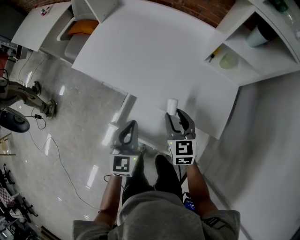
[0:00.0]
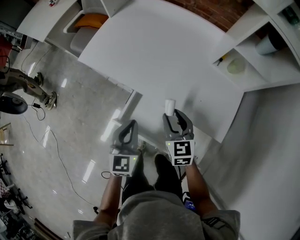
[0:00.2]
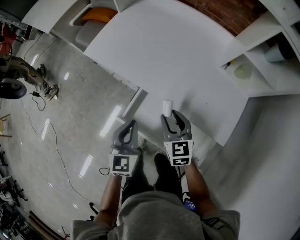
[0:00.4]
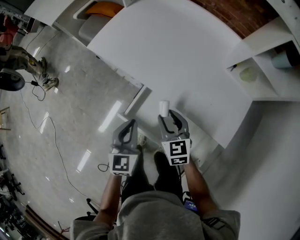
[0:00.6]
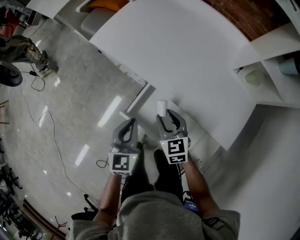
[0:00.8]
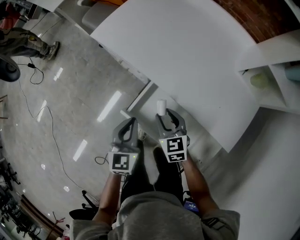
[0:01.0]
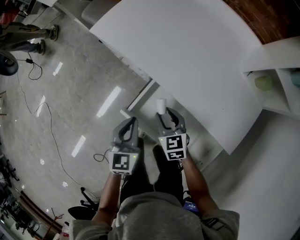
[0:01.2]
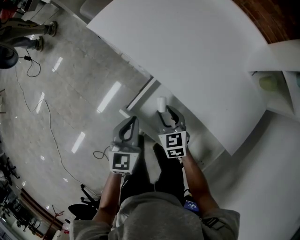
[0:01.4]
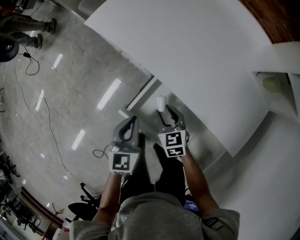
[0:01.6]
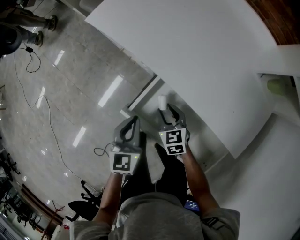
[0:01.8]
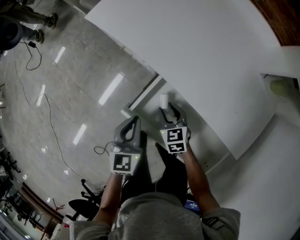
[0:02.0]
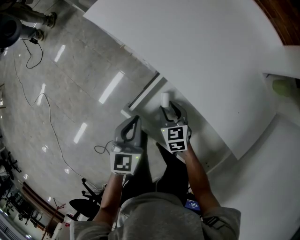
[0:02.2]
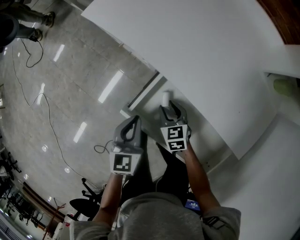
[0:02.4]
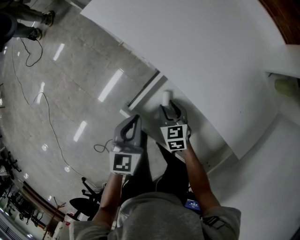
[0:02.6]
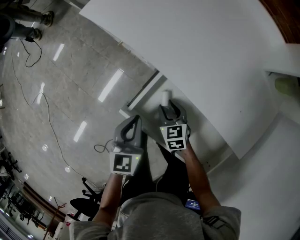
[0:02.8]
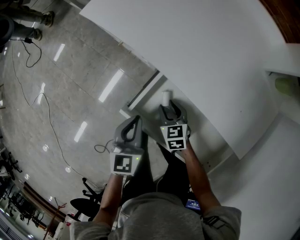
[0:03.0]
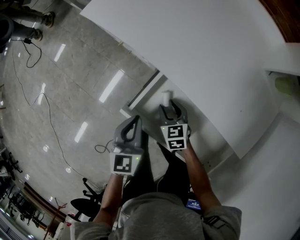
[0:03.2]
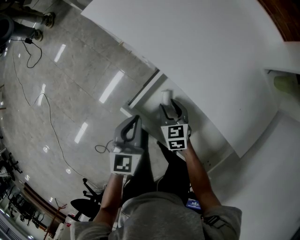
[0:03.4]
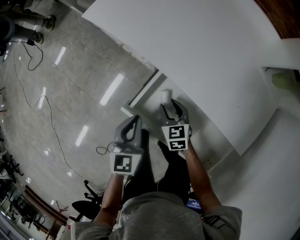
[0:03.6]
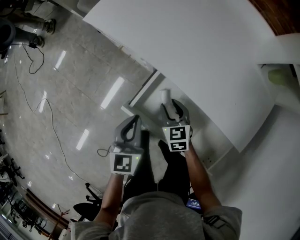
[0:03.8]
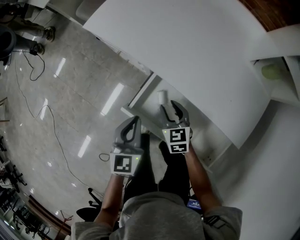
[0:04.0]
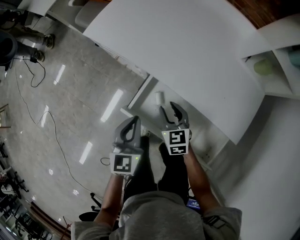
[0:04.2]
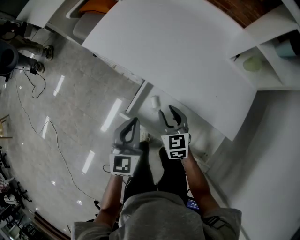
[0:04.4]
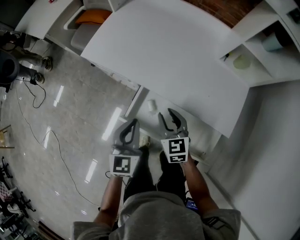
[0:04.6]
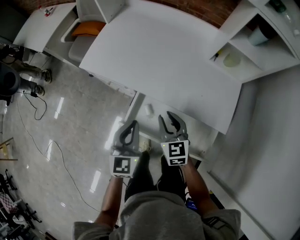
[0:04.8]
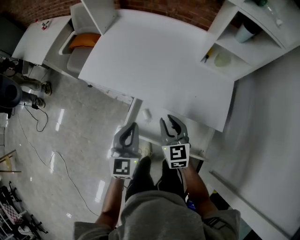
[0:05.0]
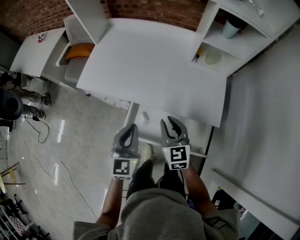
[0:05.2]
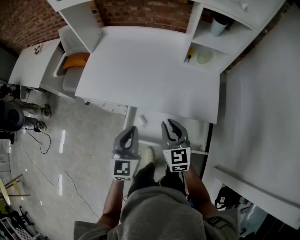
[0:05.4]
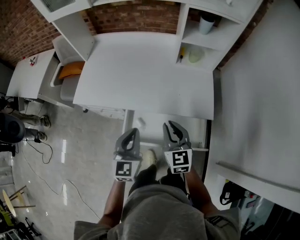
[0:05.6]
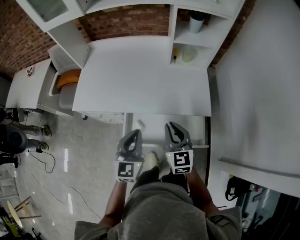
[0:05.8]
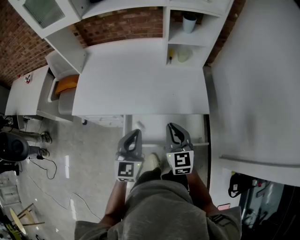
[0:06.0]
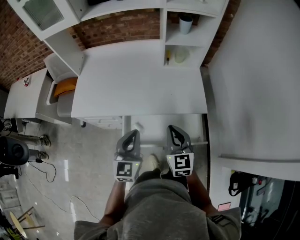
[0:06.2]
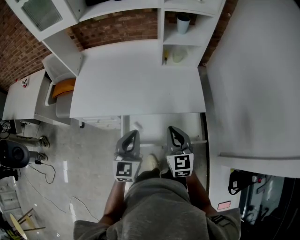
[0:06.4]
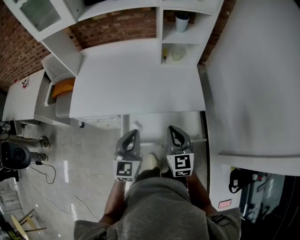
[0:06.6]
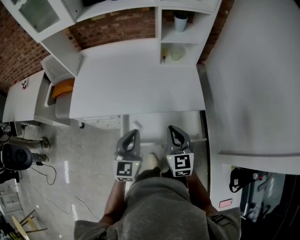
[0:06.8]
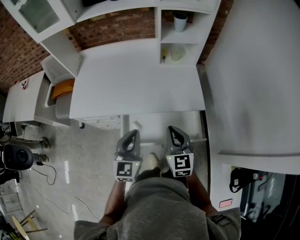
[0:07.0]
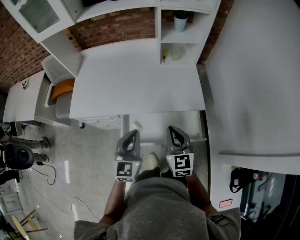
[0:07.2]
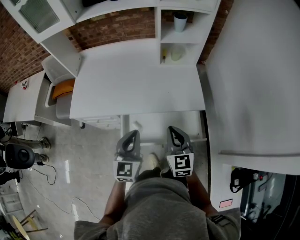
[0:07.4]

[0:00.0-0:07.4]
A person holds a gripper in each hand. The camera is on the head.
0:00.0 to 0:01.4: The grippers both shift downward and to the left by some 20 cm. The right gripper rotates approximately 30 degrees.
0:01.4 to 0:03.0: The left gripper moves downward, roughly 5 cm. The right gripper heads downward, covering some 10 cm.
0:03.0 to 0:04.4: The two grippers go approximately 15 cm upward.
0:04.4 to 0:06.0: Both grippers travel together upward, approximately 20 cm. The left gripper changes its angle by approximately 30 degrees, while the right gripper rotates approximately 40 degrees, and closes up.
0:06.0 to 0:07.4: The grippers stay close to where they were, moving slightly.

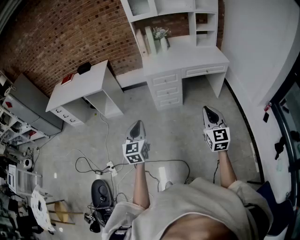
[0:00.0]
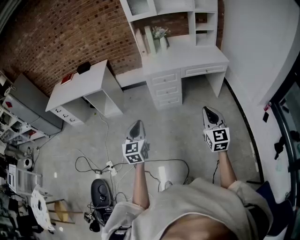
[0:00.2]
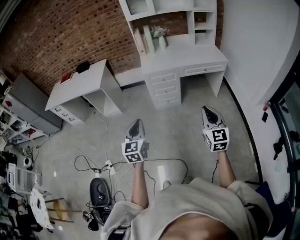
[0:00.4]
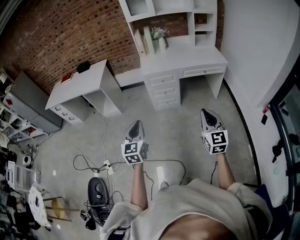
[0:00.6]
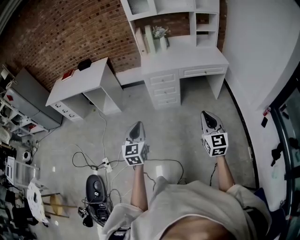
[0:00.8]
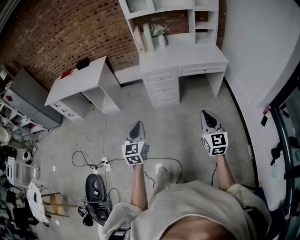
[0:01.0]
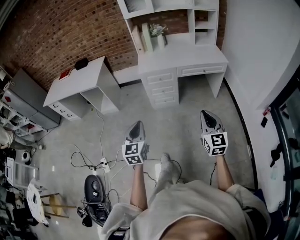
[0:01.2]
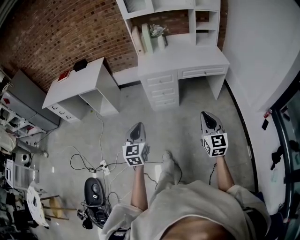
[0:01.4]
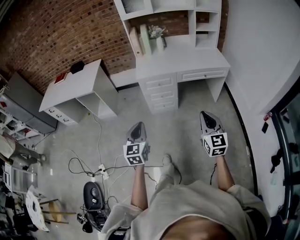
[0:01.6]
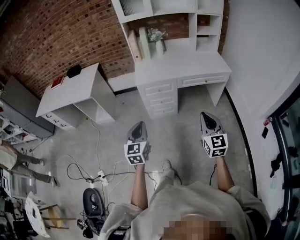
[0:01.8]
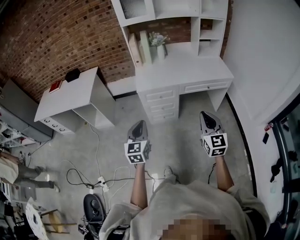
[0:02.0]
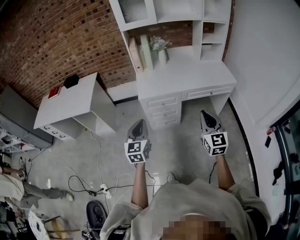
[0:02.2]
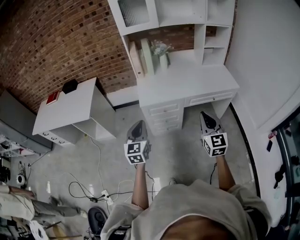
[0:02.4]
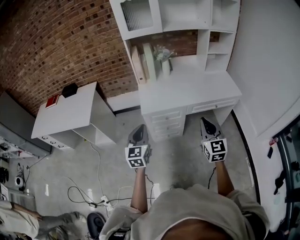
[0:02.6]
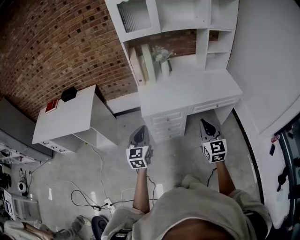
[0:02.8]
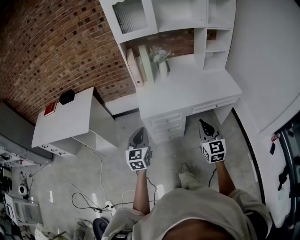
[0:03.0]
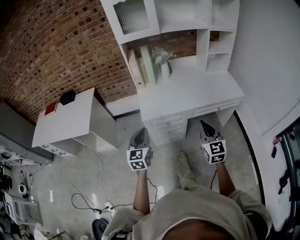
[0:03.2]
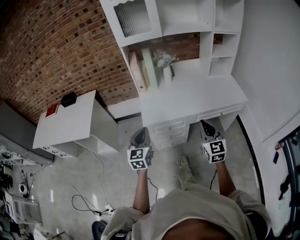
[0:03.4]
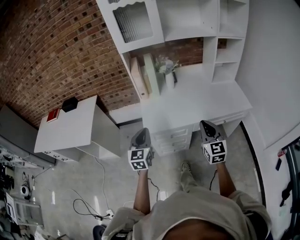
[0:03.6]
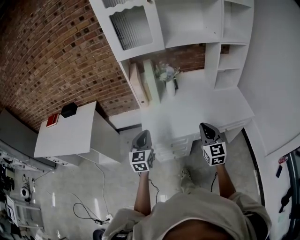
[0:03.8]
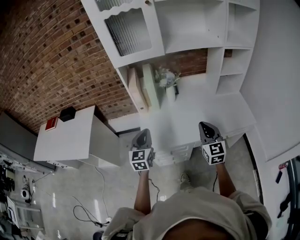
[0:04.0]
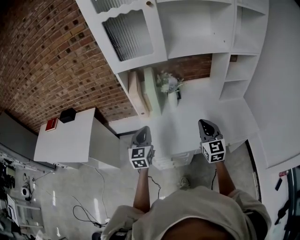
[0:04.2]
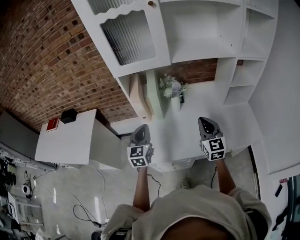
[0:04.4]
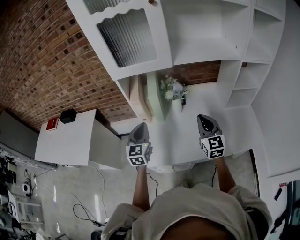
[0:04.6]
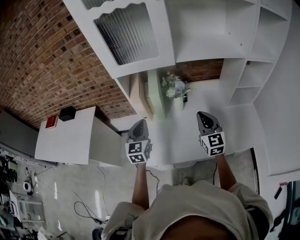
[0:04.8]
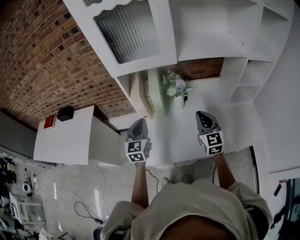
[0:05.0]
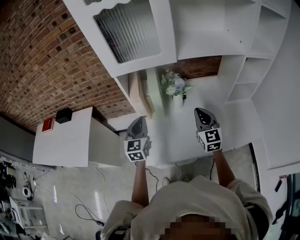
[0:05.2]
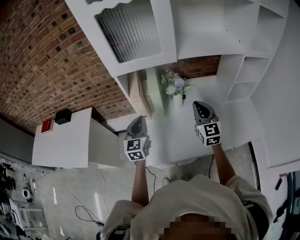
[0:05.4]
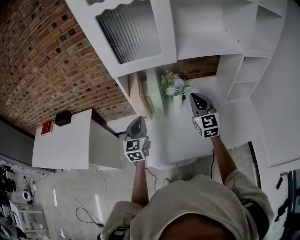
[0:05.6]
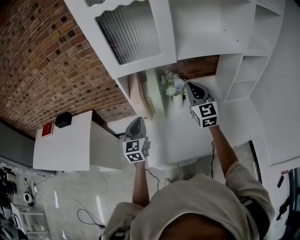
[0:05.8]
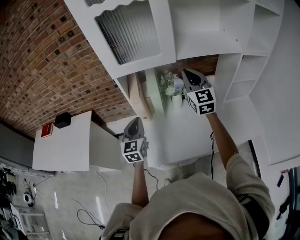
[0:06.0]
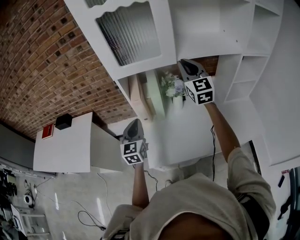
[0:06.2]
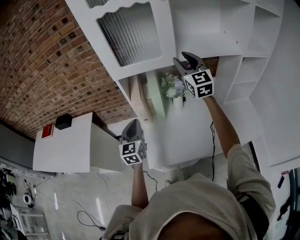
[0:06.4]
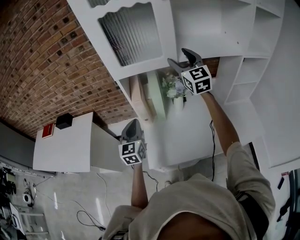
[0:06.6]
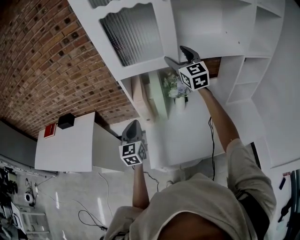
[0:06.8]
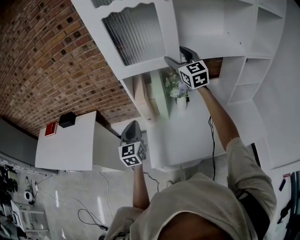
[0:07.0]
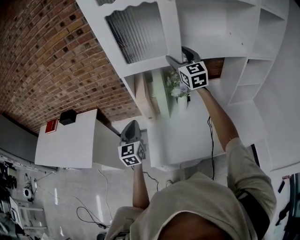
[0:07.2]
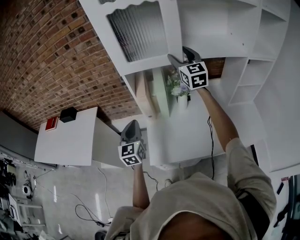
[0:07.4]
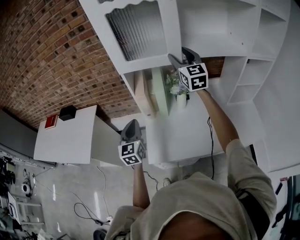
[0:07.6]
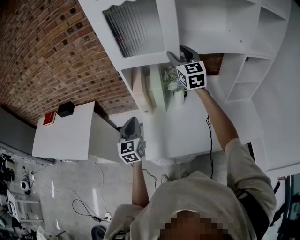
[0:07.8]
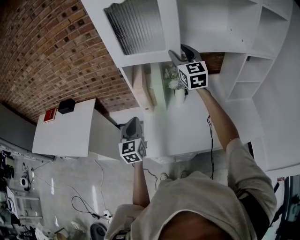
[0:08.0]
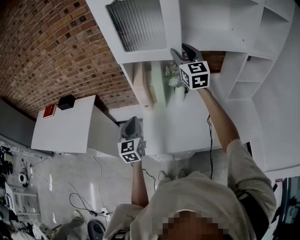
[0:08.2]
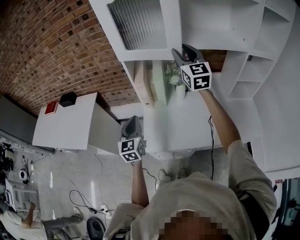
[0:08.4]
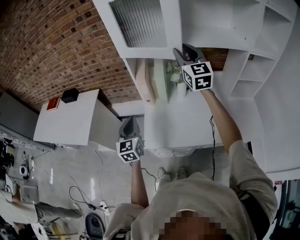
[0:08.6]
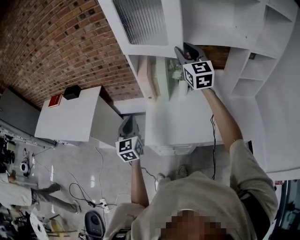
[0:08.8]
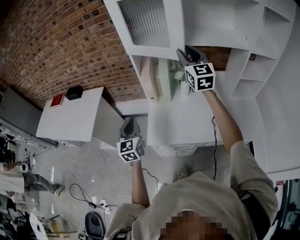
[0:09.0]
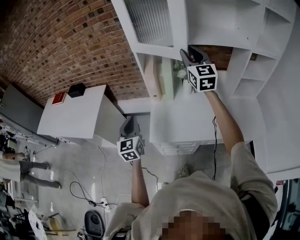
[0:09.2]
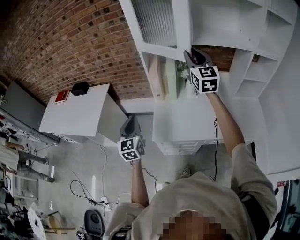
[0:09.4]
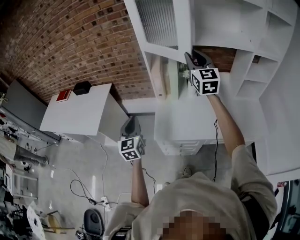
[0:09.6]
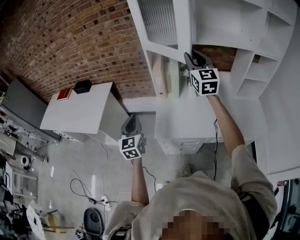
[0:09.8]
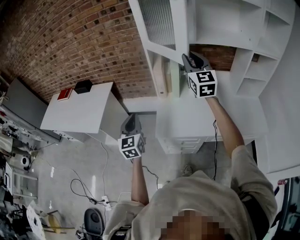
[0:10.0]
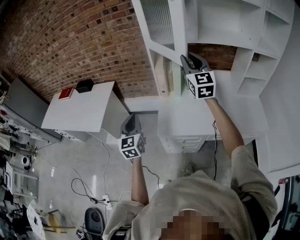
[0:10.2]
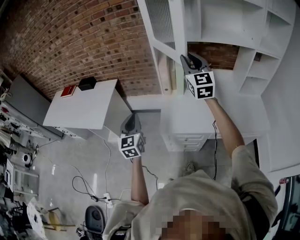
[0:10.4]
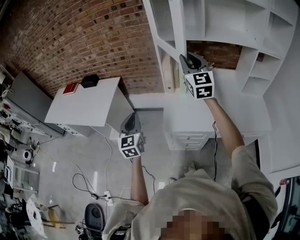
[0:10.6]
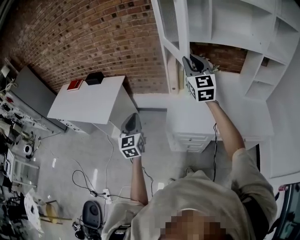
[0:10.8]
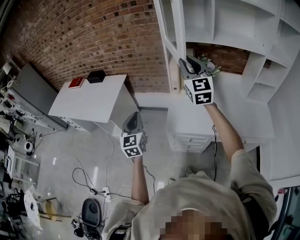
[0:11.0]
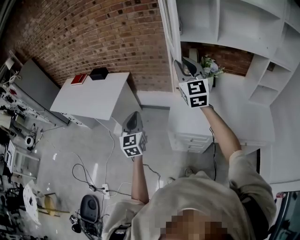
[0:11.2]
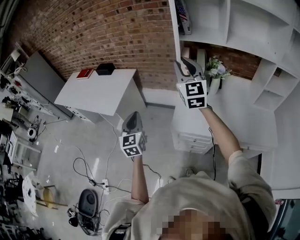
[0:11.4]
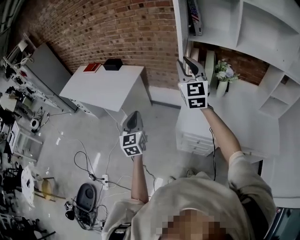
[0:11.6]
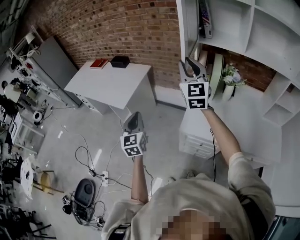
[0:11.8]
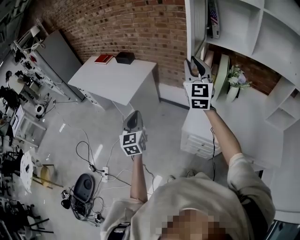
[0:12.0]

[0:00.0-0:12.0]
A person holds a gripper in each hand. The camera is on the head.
0:00.0 to 0:01.6: The grippers both shift forward and to the right by approximately 15 cm.
0:01.6 to 0:03.0: Both grippers travel together forward, approximately 35 cm.
0:03.0 to 0:04.4: The two grippers go roughly 40 cm forward.
0:04.4 to 0:06.0: The left gripper is displaced forward and to the left by roughly 10 cm. The right gripper is displaced forward and upward by about 20 cm.
0:06.0 to 0:07.6: The right gripper is displaced upward and forward by roughly 10 cm, and opens its fingers.
0:07.6 to 0:09.0: The grippers both shift backward by about 10 cm. The right gripper closes.
0:09.0 to 0:10.4: The grippers both shift to the left and backward by approximately 15 cm.
0:10.4 to 0:12.0: The grippers both shift to the left by approximately 15 cm.

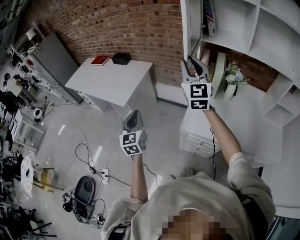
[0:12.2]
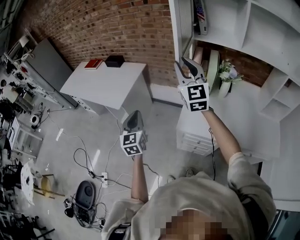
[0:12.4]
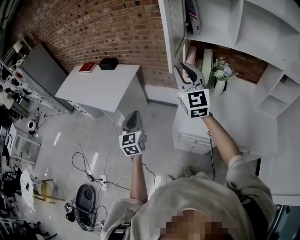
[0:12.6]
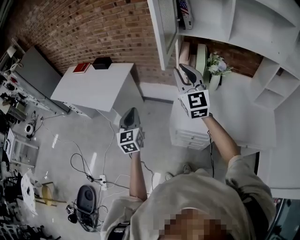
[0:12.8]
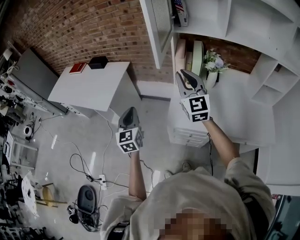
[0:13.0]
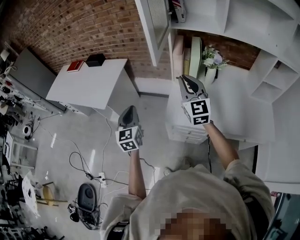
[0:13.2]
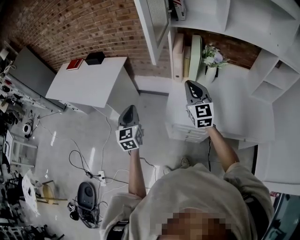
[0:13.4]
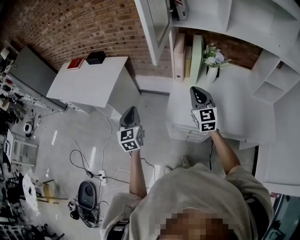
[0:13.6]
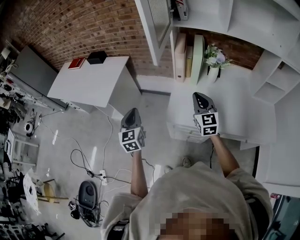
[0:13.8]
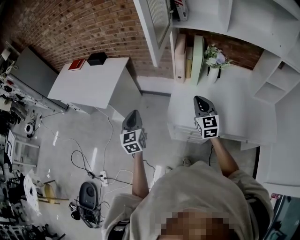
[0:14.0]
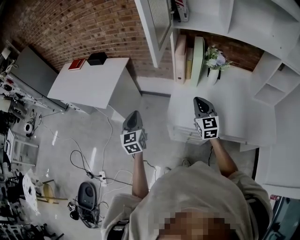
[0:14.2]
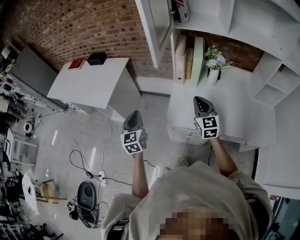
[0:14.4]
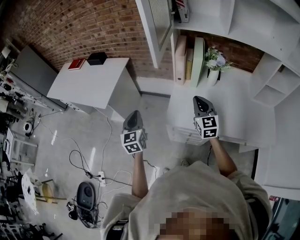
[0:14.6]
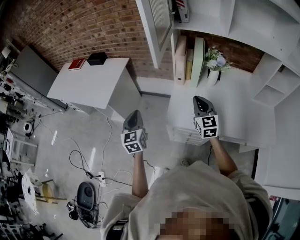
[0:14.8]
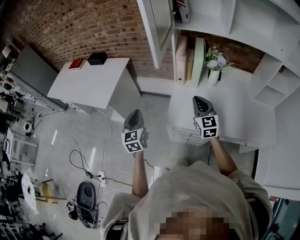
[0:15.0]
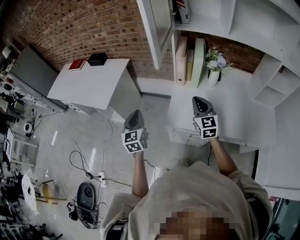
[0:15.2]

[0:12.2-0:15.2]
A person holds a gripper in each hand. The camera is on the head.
0:12.2 to 0:13.8: The left gripper shifts some 10 cm to the right and downward. The right gripper is displaced downward and to the right by approximately 25 cm, and rotates roughly 20 degrees.
0:13.8 to 0:15.2: The grippers move only a little.

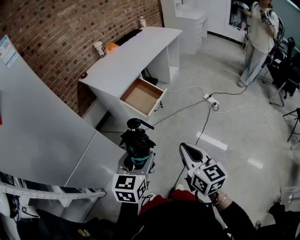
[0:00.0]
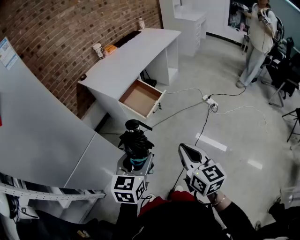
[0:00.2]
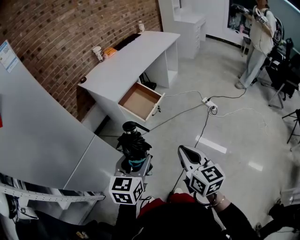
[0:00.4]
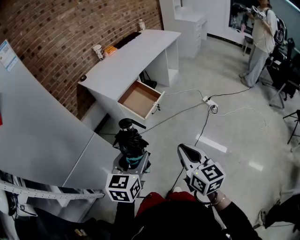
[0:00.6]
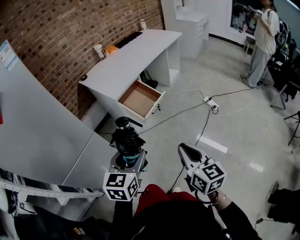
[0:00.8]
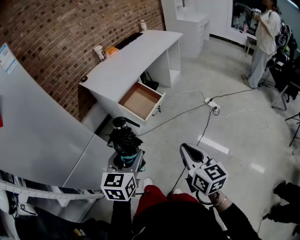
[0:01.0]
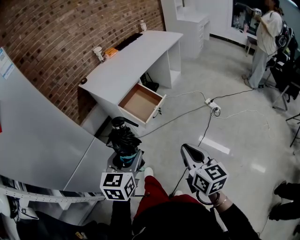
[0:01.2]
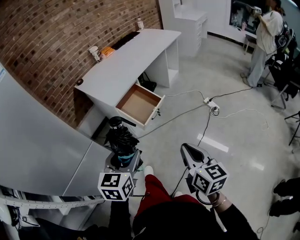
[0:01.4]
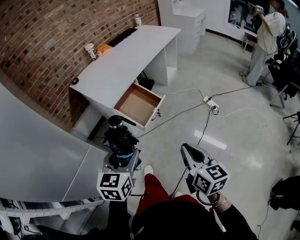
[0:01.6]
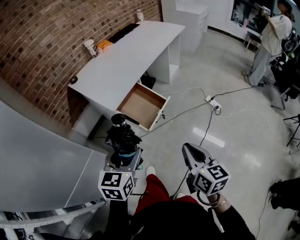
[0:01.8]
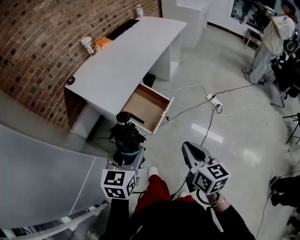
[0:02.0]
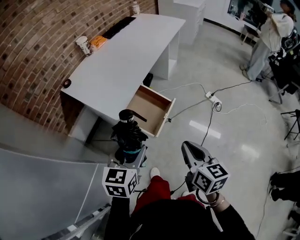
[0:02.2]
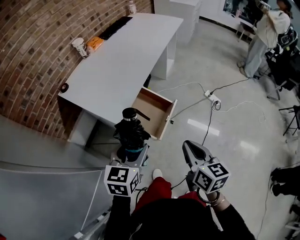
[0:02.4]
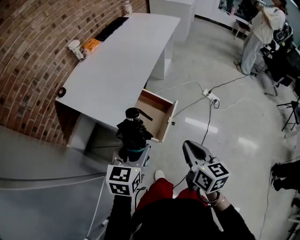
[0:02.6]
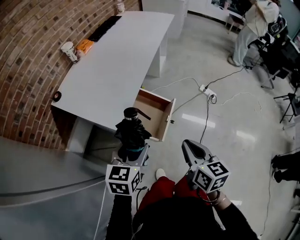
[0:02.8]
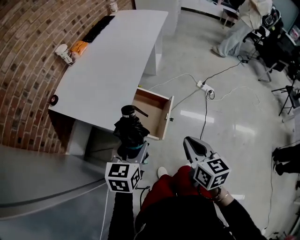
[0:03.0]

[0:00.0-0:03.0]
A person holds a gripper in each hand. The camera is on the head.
0:00.0 to 0:01.6: Both grippers move forward, some 10 cm.
0:01.6 to 0:03.0: Both grippers move forward and to the left, approximately 25 cm. The left gripper rotates approximately 20 degrees; the right gripper rotates about 20 degrees.
